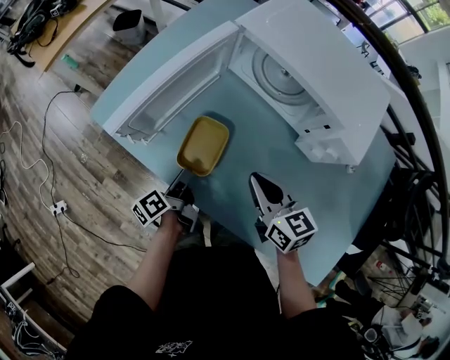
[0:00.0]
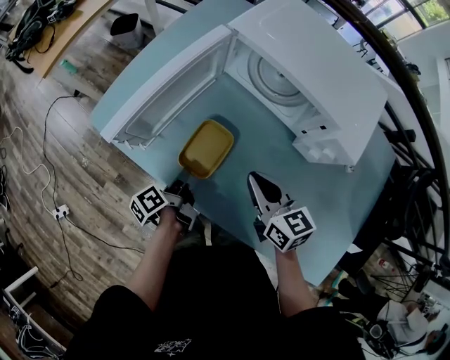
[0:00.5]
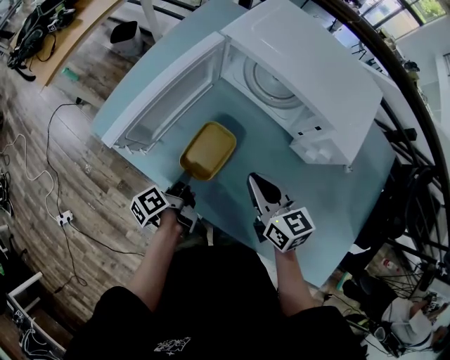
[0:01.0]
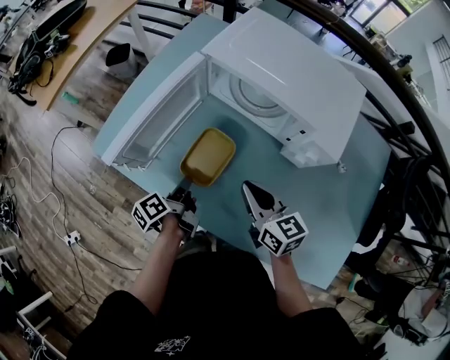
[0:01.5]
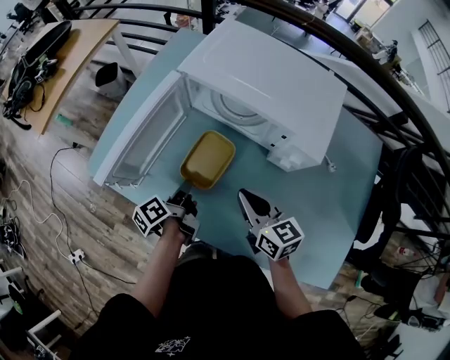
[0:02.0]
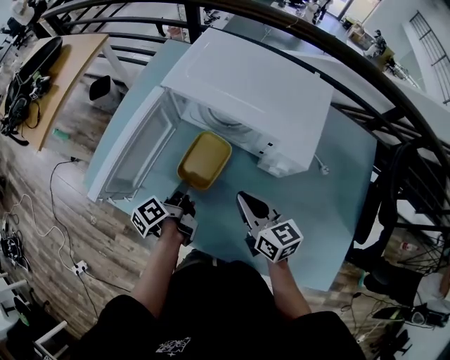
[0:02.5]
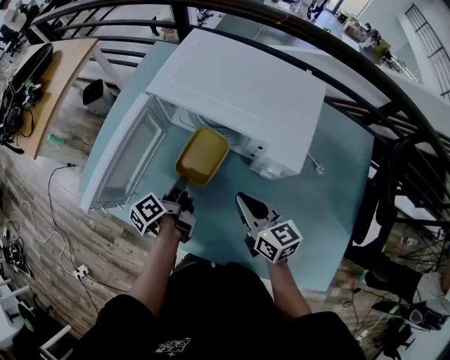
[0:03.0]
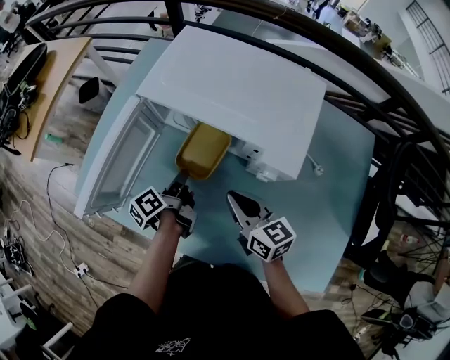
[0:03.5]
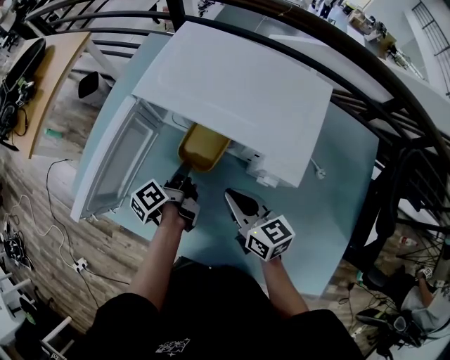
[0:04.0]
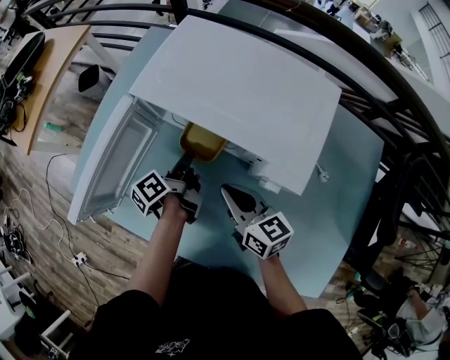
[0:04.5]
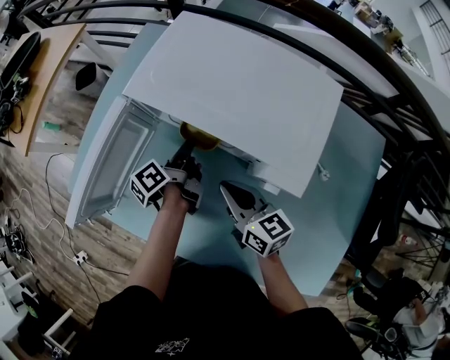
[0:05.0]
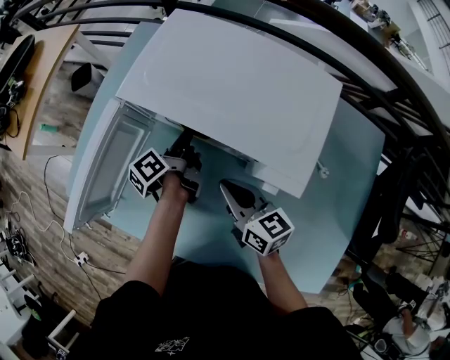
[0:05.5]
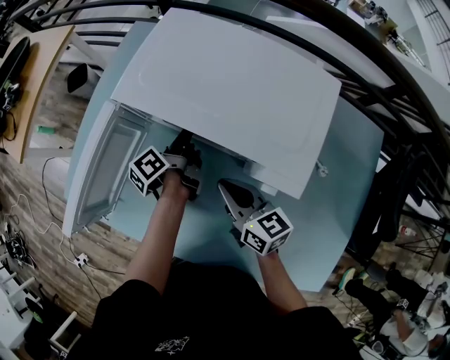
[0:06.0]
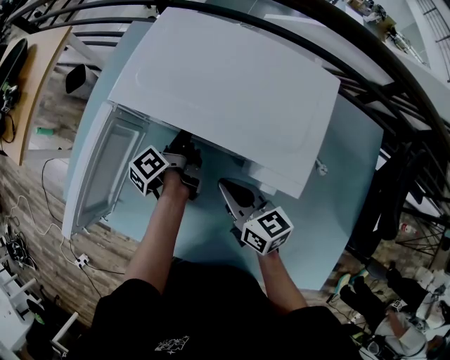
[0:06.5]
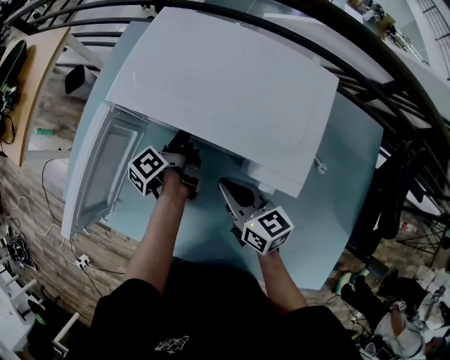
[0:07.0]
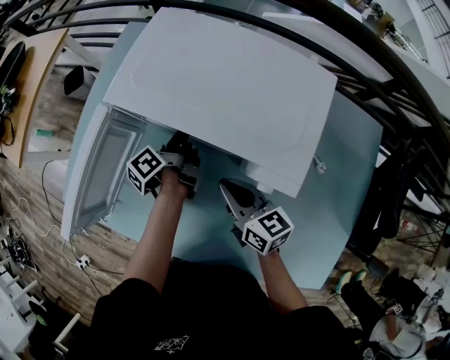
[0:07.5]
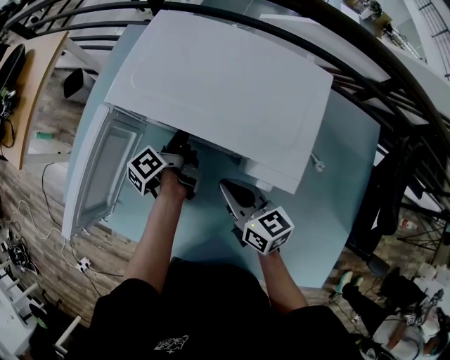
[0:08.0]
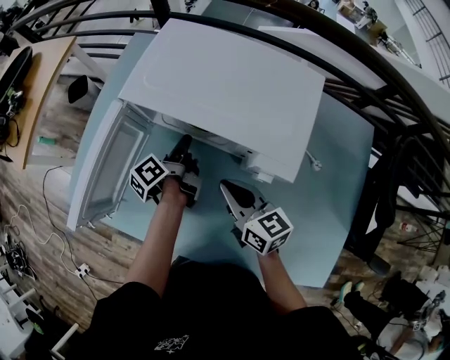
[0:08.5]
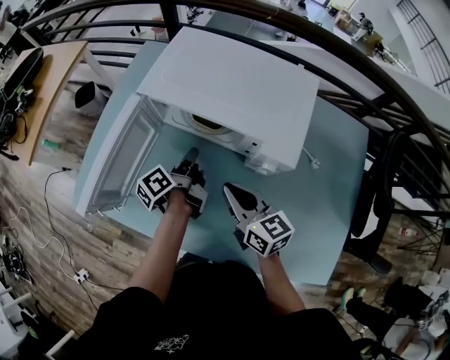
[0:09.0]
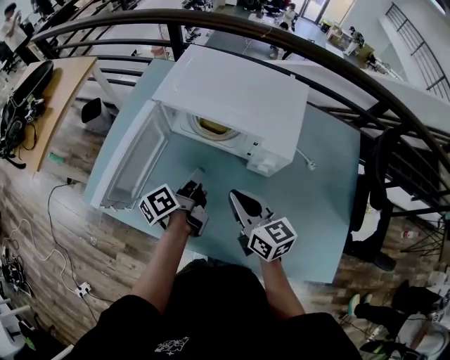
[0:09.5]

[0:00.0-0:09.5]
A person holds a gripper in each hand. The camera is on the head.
0:00.0 to 0:02.0: The left gripper heads to the right, upward and forward, covering approximately 10 cm; the right gripper heads to the right, covering about 5 cm.
0:02.0 to 0:04.0: The left gripper travels forward and to the right by approximately 15 cm; the right gripper heads forward and to the right, covering about 10 cm.
0:04.0 to 0:05.5: The left gripper travels forward by about 10 cm.
0:05.5 to 0:07.5: The grippers stay close to where they were, moving slightly.
0:07.5 to 0:09.5: The grippers both shift backward and upward by roughly 15 cm.

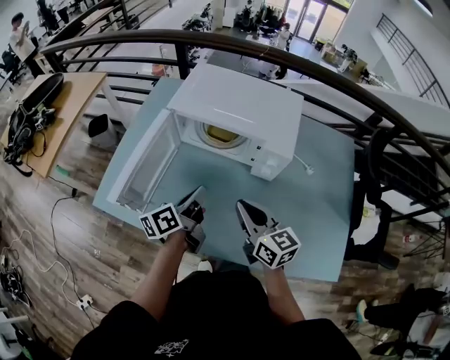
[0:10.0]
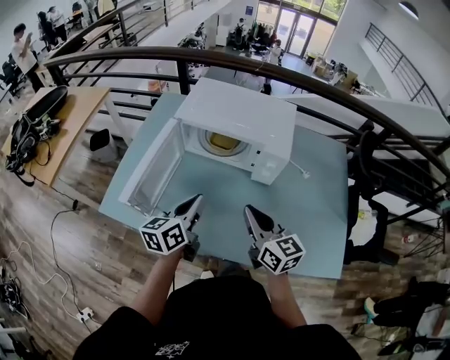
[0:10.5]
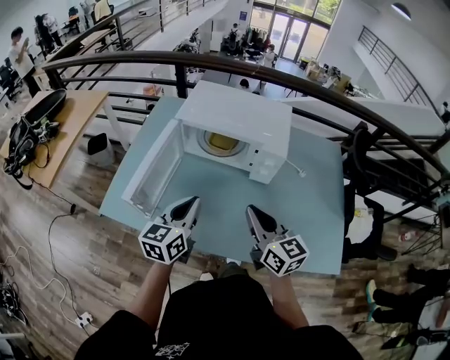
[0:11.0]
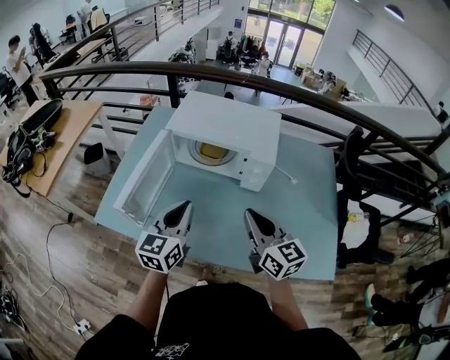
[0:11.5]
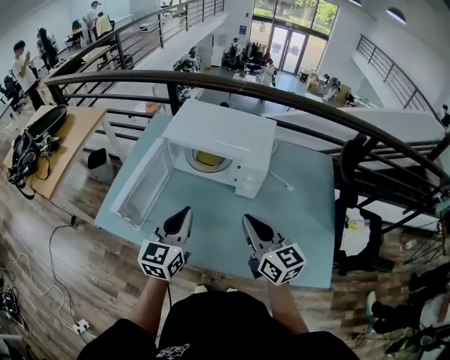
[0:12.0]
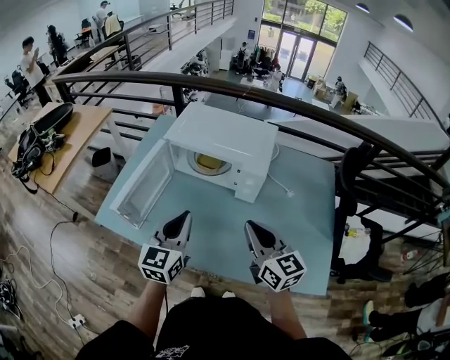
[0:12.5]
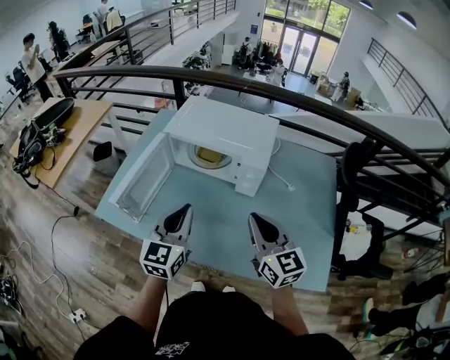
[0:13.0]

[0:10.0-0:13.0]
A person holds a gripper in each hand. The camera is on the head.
0:10.0 to 0:11.5: Both grippers travel together upward and backward, about 10 cm. The left gripper rotates around the line of its fingers by roughly 50 degrees, clockwise from behind.
0:11.5 to 0:13.0: Both grippers travel together to the right, approximately 5 cm.

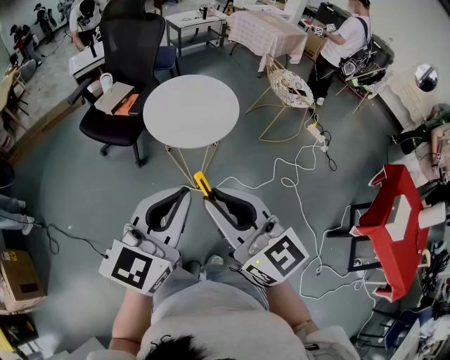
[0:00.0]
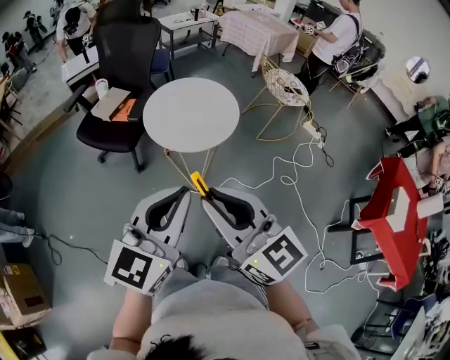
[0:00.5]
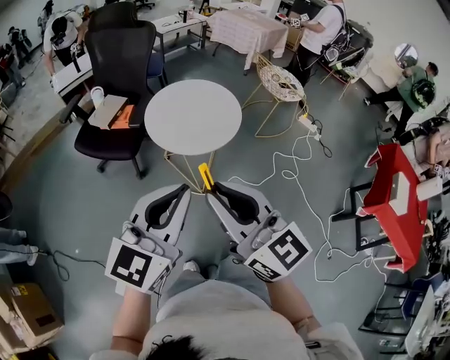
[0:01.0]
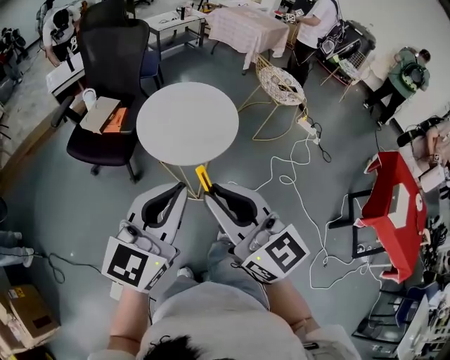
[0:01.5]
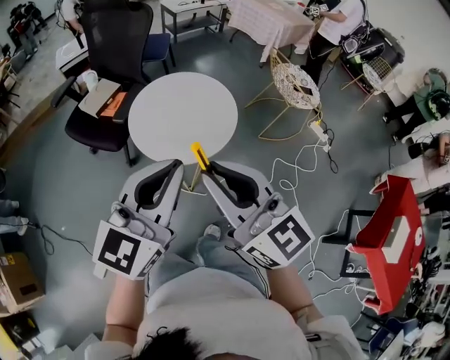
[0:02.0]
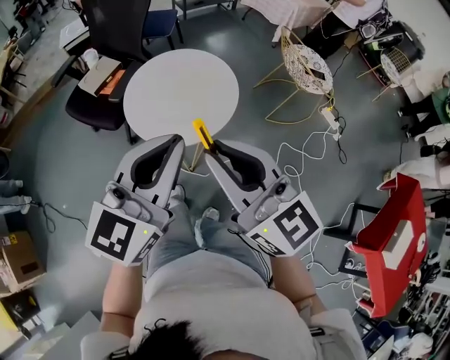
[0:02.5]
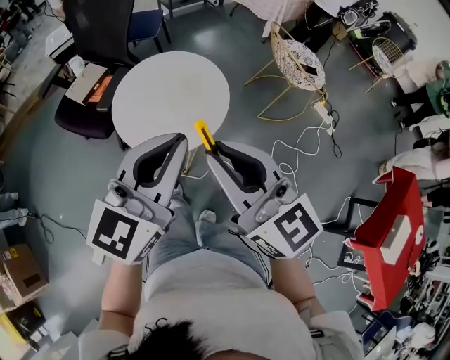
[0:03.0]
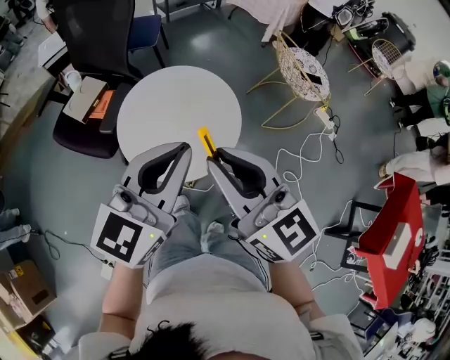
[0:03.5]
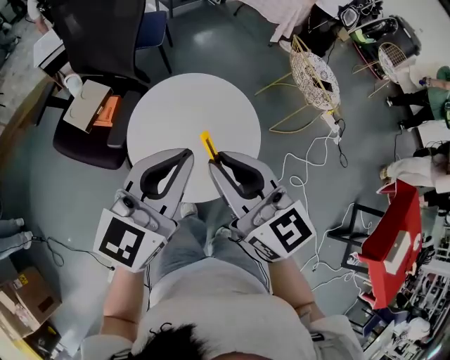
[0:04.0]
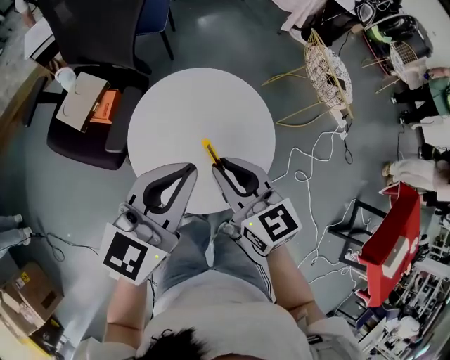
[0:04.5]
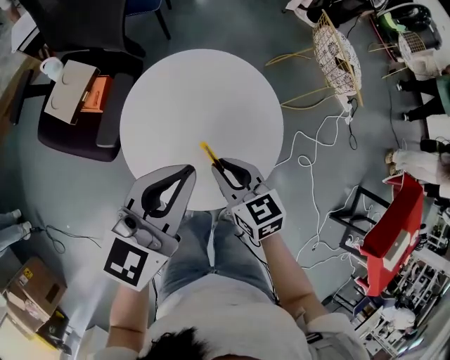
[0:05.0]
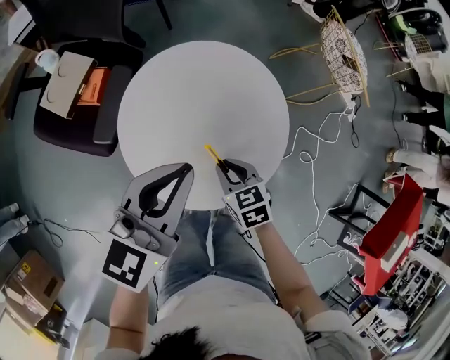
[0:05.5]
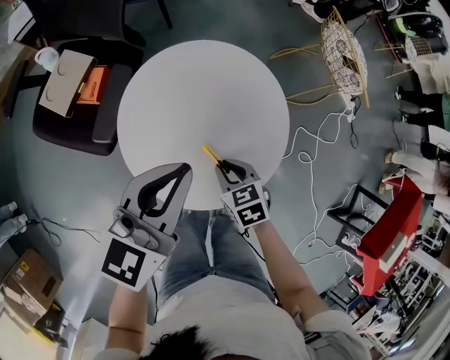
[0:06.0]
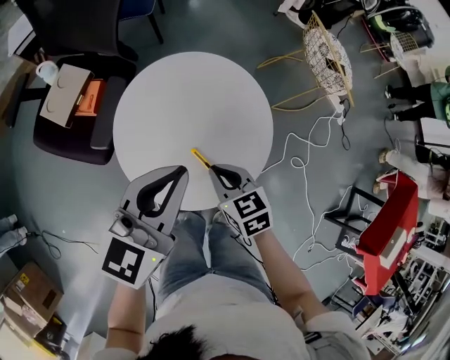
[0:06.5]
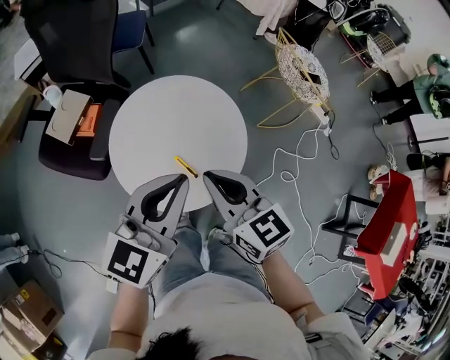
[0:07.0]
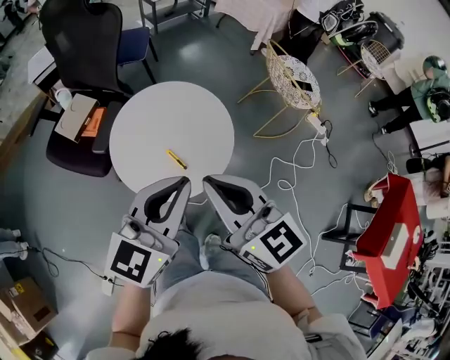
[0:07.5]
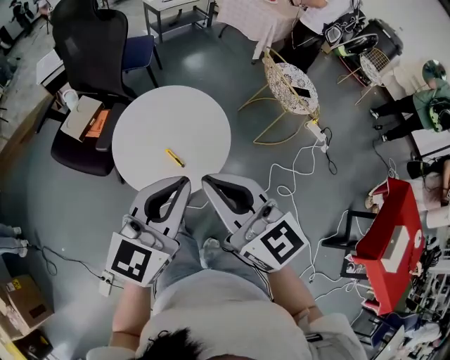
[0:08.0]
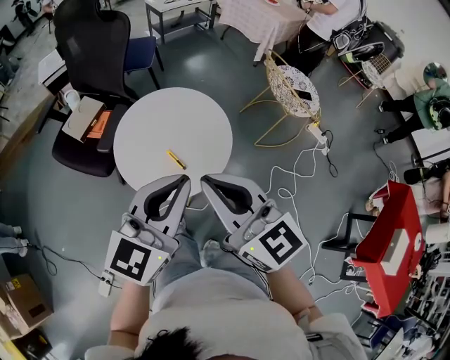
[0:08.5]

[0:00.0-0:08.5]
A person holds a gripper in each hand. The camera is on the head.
0:00.0 to 0:02.0: Both grippers move forward, some 15 cm.
0:02.0 to 0:04.0: The two grippers go some 25 cm forward.
0:04.0 to 0:06.5: The left gripper moves downward, roughly 10 cm. Meanwhile the right gripper heads downward, covering about 25 cm, and tips its fingers downward by about 40 degrees.
0:06.5 to 0:08.5: The right gripper travels upward and backward by approximately 35 cm, and tilts its fingers about 40 degrees upward. Meanwhile the left gripper goes roughly 20 cm backward, upward and to the right.

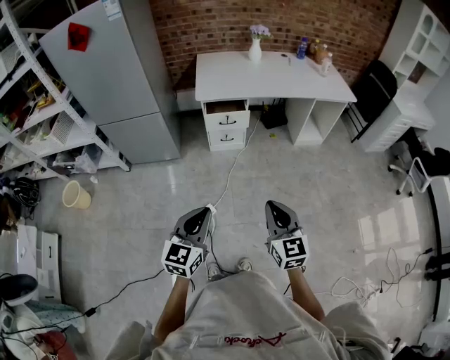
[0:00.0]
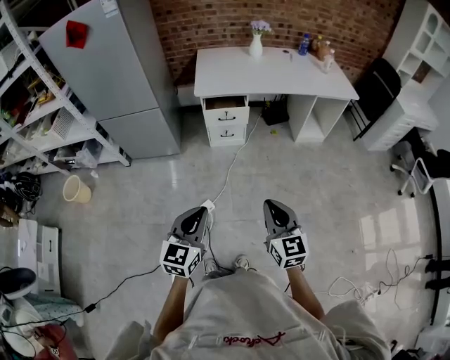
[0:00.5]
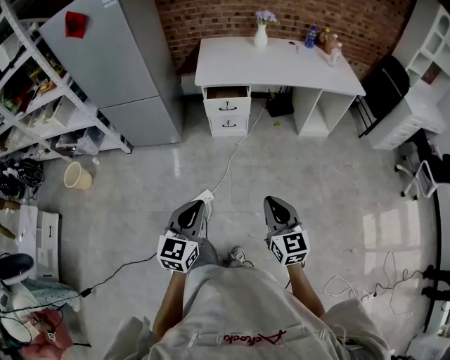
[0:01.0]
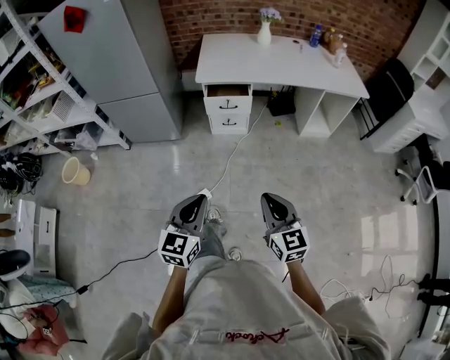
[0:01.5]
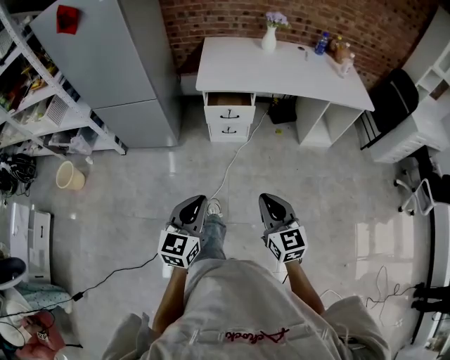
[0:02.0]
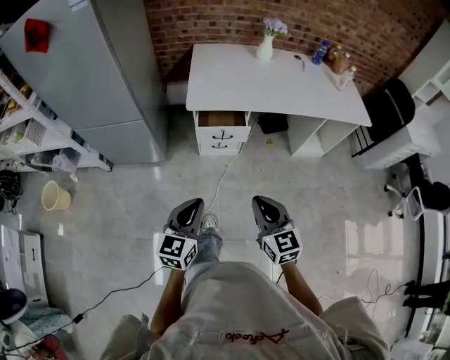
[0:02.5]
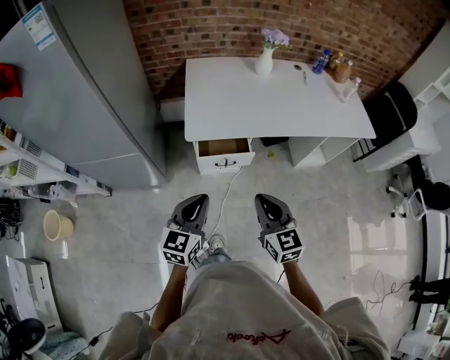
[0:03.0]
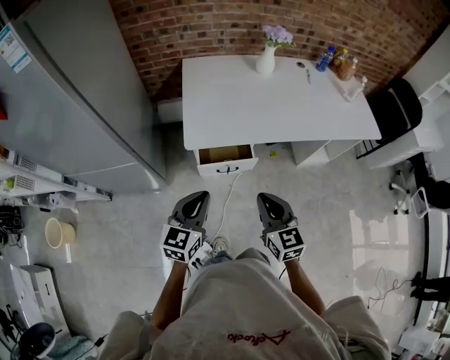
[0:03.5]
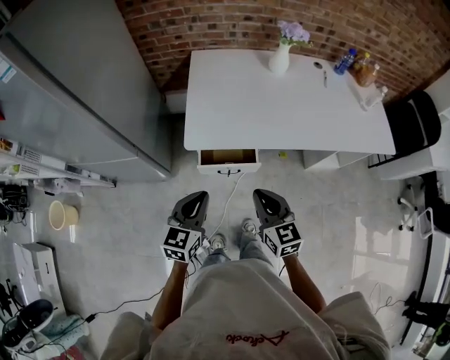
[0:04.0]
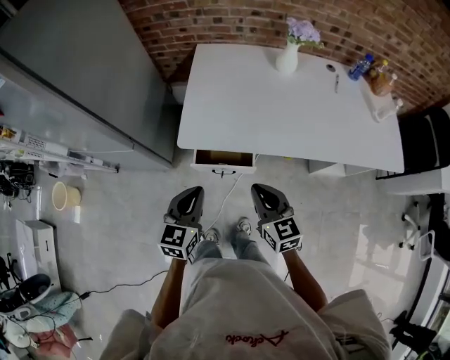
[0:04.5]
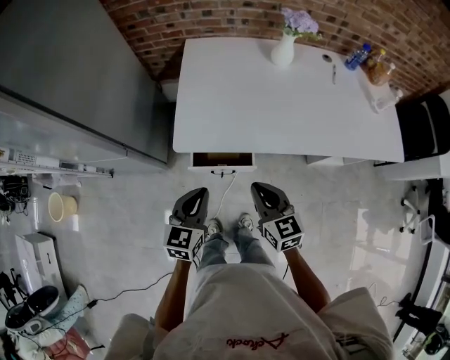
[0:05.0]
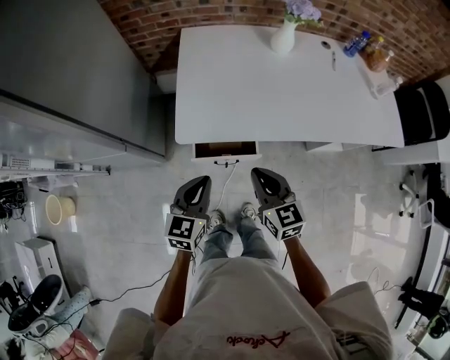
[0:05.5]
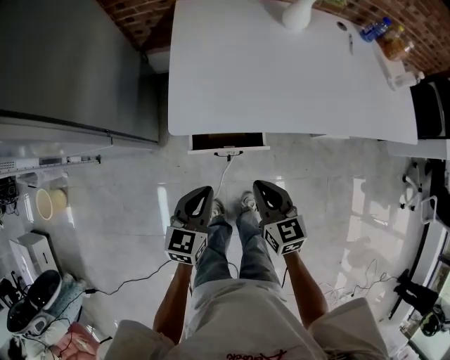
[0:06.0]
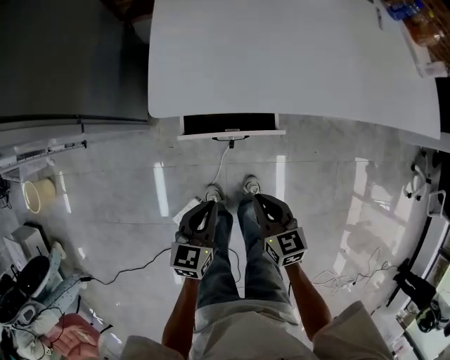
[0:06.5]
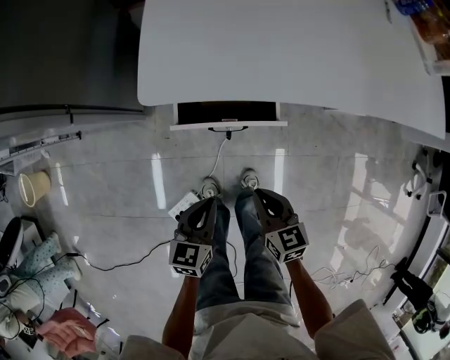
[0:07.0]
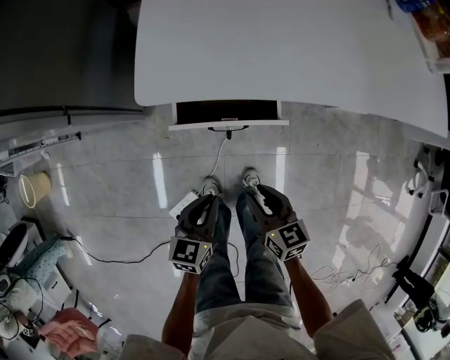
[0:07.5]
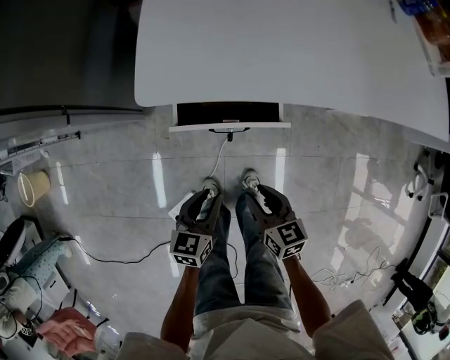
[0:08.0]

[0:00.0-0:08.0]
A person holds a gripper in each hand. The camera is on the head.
0:00.0 to 0:02.0: Both grippers travel together forward, about 10 cm.
0:02.0 to 0:04.0: The pair of grippers is taken forward, some 40 cm.
0:04.0 to 0:06.0: Both grippers move downward and forward, roughly 15 cm.
0:06.0 to 0:08.0: Both grippers travel together downward, roughly 20 cm. The right gripper opens. Meanwhile the left gripper opens its fingers.
